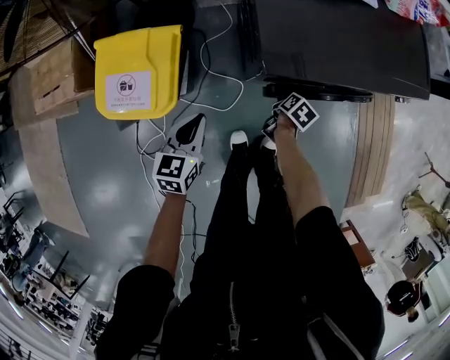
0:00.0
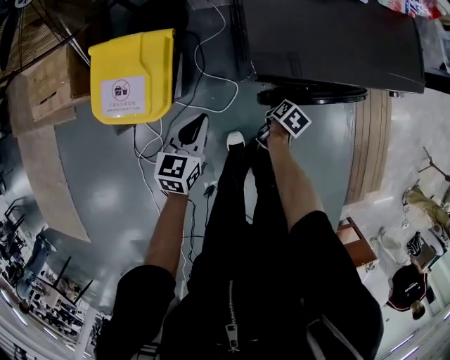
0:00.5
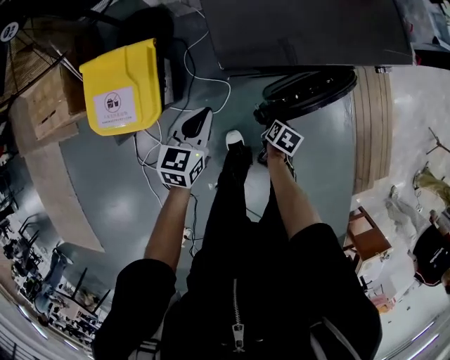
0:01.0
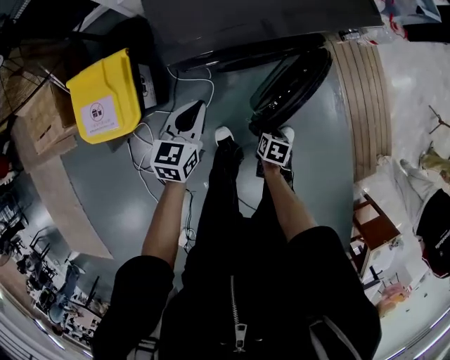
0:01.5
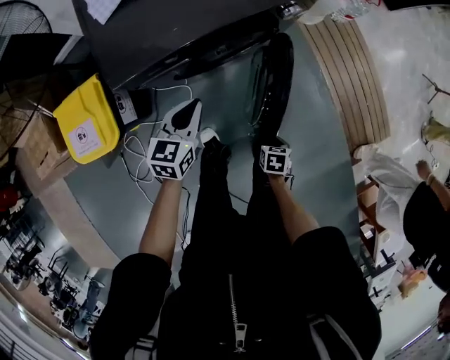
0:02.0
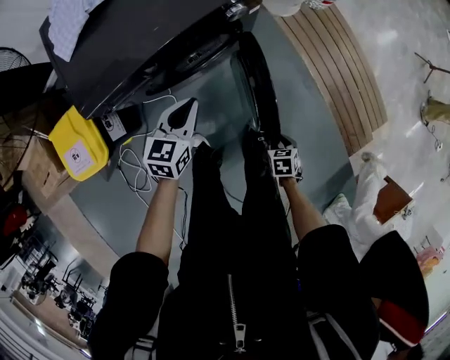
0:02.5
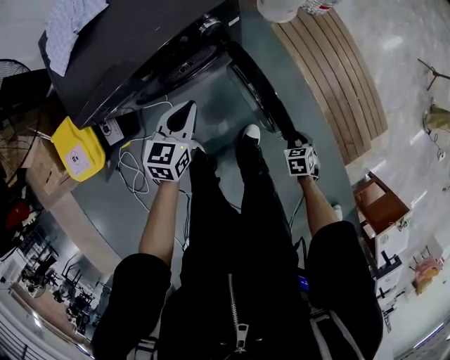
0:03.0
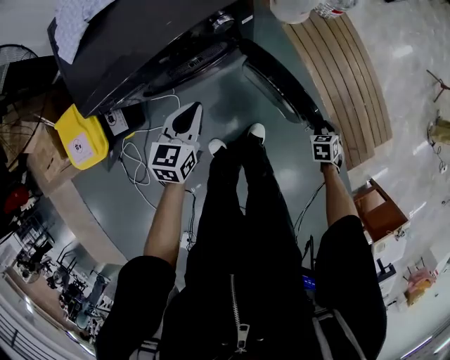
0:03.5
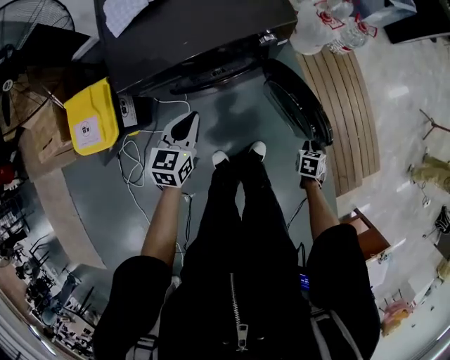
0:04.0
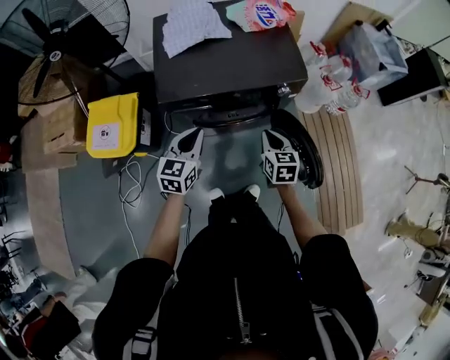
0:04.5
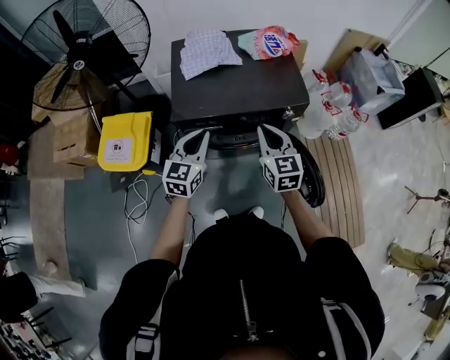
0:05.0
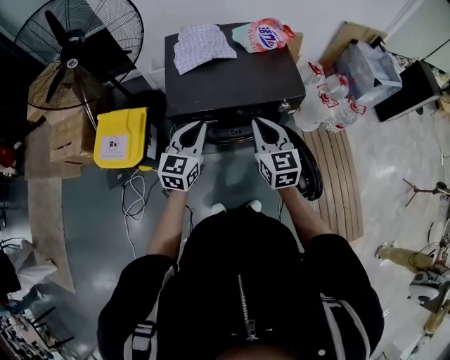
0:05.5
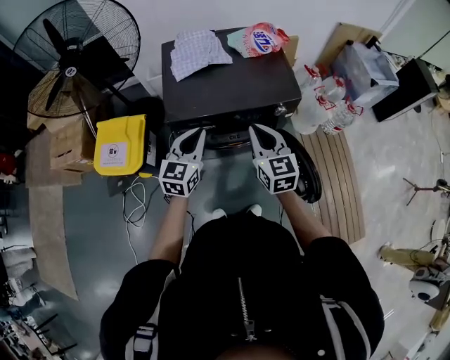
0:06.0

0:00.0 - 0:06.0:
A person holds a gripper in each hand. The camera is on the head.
0:00.0 - 0:02.0: The right gripper heads to the right and backward, covering about 35 cm, rotates roughly 20 degrees, and closes; the left gripper is displaced to the right by roughly 35 cm, and swivels roughly 20 degrees.
0:02.0 - 0:04.0: The right gripper is displaced to the right and forward by approximately 25 cm; the left gripper moves upward and to the right, approximately 10 cm.
0:04.0 - 0:06.0: The right gripper moves upward, roughly 40 cm, and angles its fingers upward, by roughly 50 degrees. Meanwhile the left gripper moves upward, about 20 cm, and changes its angle by about 20 degrees.

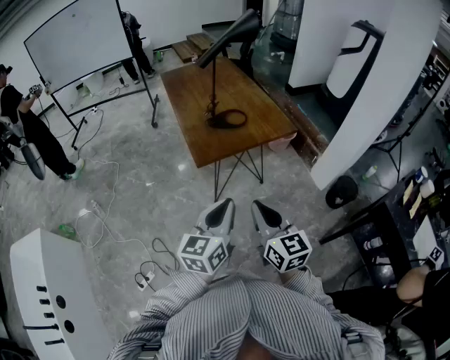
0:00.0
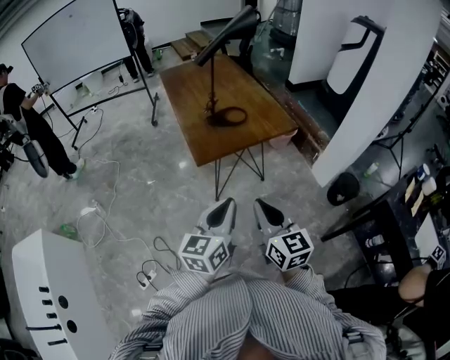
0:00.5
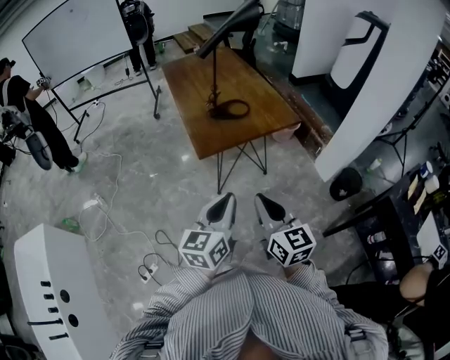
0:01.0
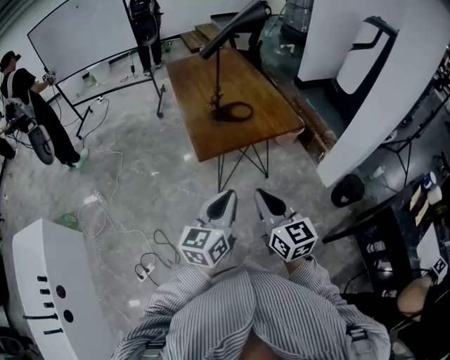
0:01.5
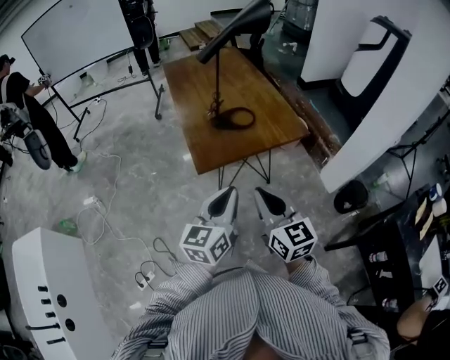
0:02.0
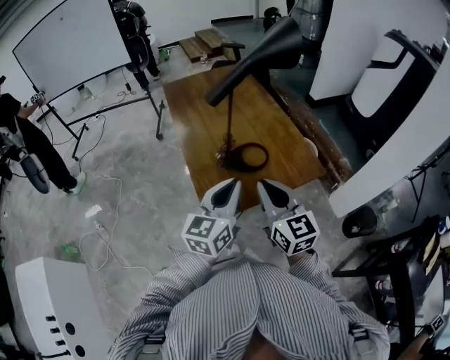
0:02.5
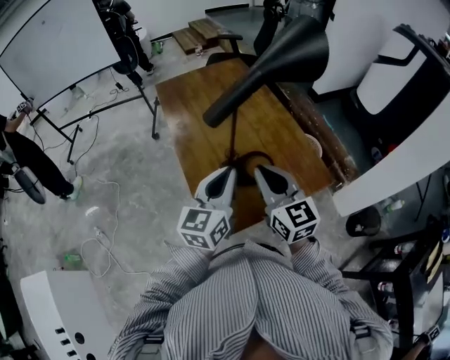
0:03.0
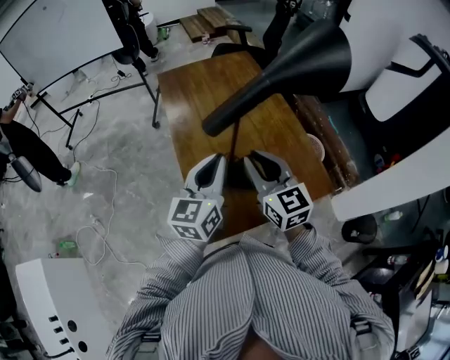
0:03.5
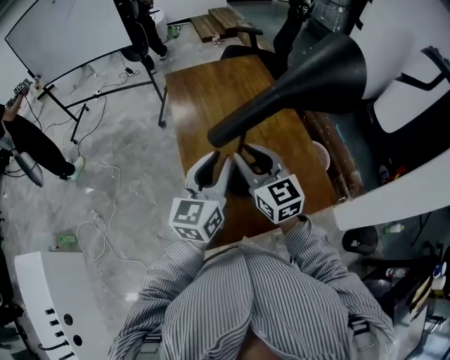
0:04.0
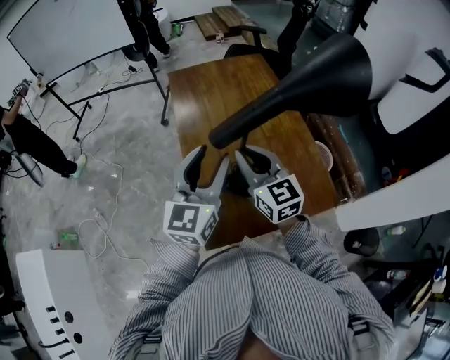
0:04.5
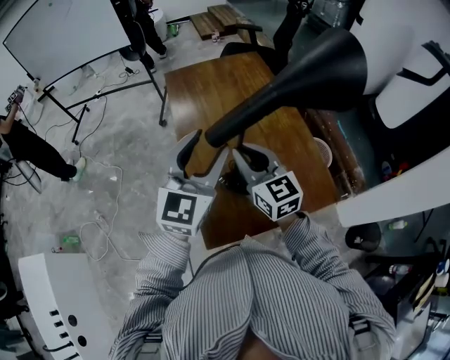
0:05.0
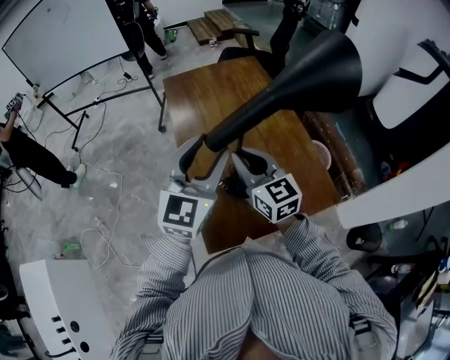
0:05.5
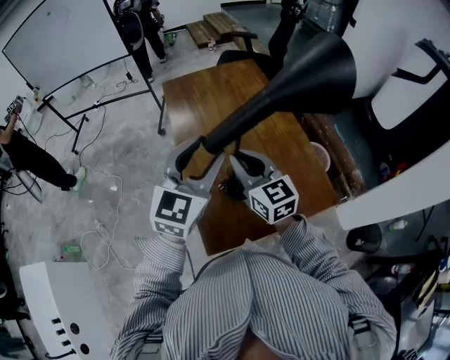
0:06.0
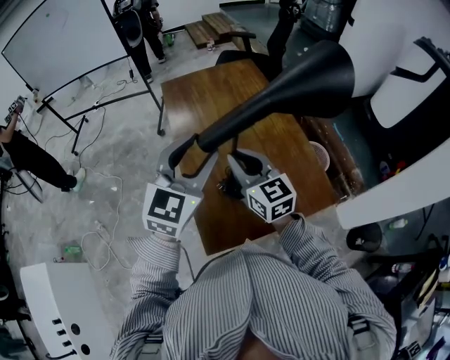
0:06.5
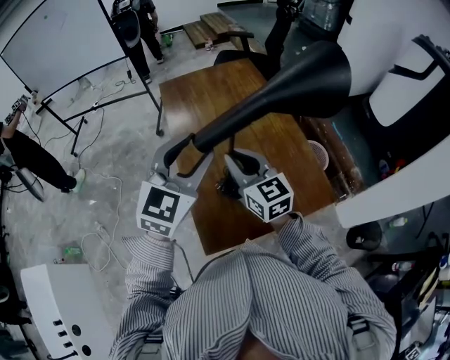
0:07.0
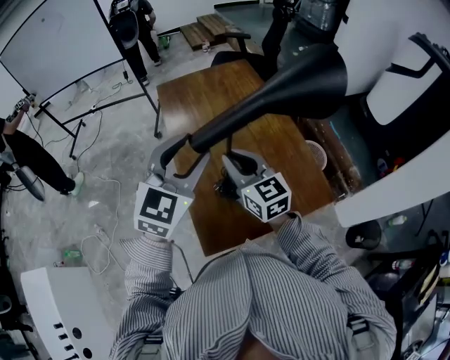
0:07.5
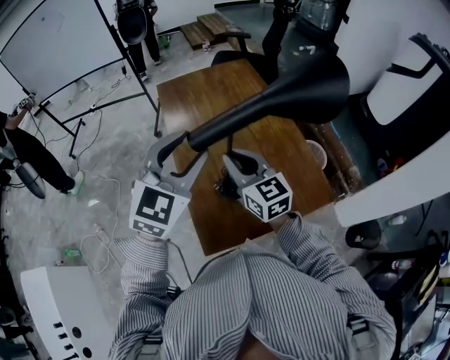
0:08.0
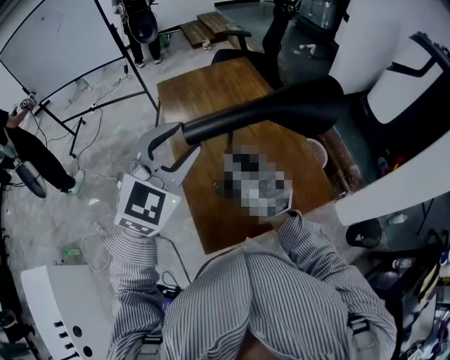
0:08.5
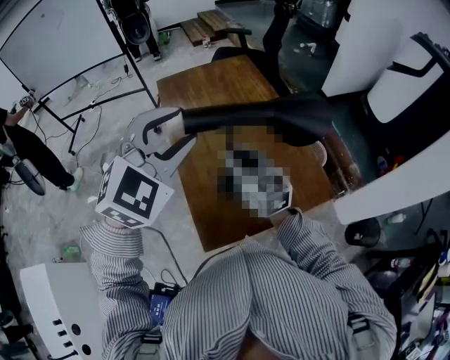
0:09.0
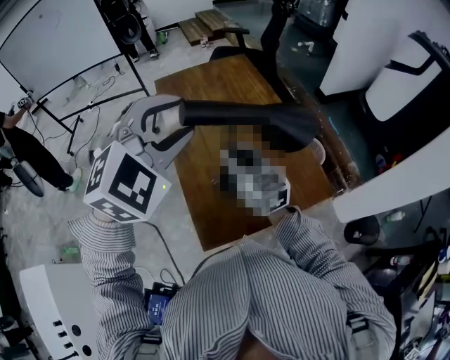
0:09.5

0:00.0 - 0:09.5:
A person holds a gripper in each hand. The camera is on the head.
0:00.0 - 0:02.0: The grippers both shift forward by some 15 cm.
0:02.0 - 0:04.0: The pair of grippers is taken forward, about 50 cm. The right gripper opens its fingers; the left gripper opens up.
0:04.0 - 0:05.5: The left gripper heads upward, covering approximately 5 cm, changes its angle by approximately 30 degrees, and opens.
0:05.5 - 0:07.5: The grippers make only small movements.
0:07.5 - 0:09.5: The left gripper is displaced upward by approximately 10 cm, and turns by some 30 degrees.

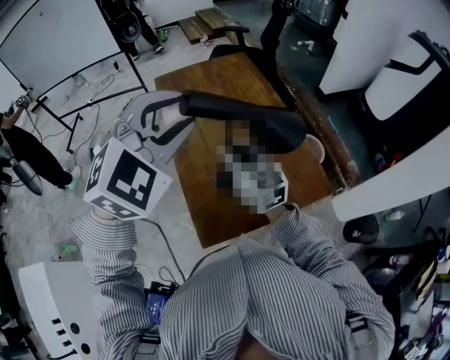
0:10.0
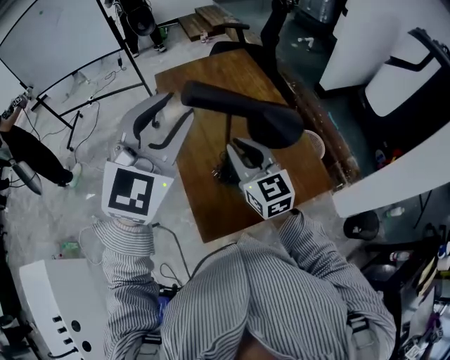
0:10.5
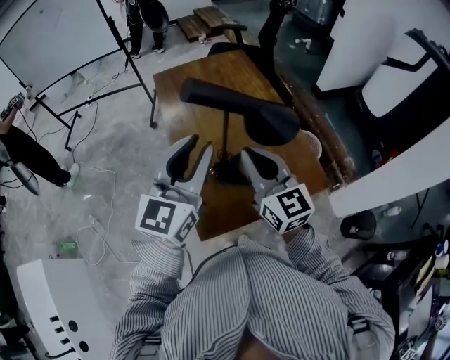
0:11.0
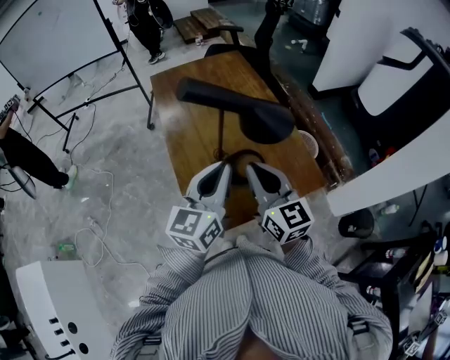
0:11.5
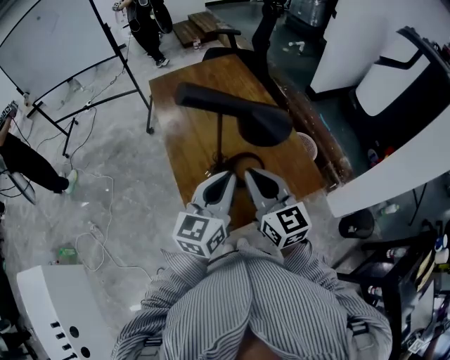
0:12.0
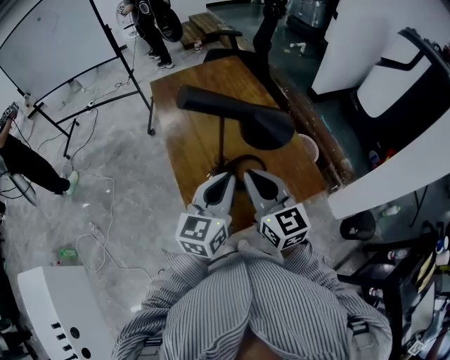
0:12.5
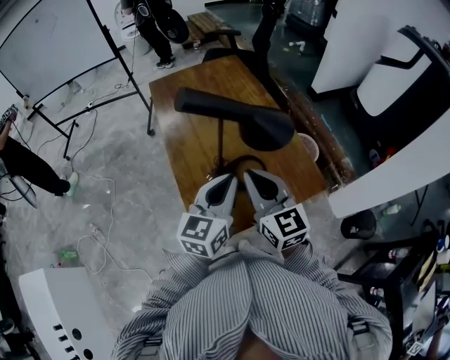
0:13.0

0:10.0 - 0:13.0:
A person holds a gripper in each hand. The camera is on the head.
0:10.0 - 0:11.5: The right gripper shifts roughly 15 cm backward and to the right; the left gripper goes some 15 cm downward and backward, rolls counterclockwise, seen from behind, by some 70 degrees, and closes up.
0:11.5 - 0:13.0: The grippers make only small movements.

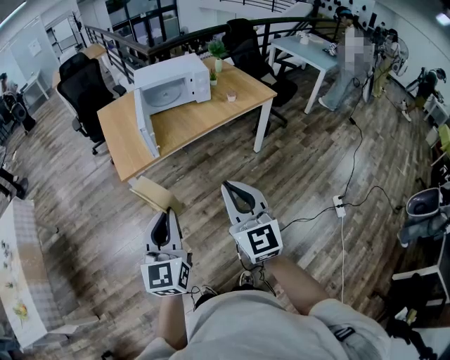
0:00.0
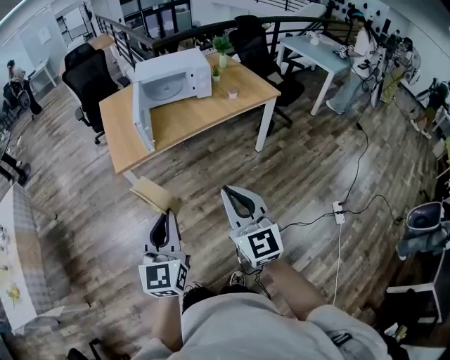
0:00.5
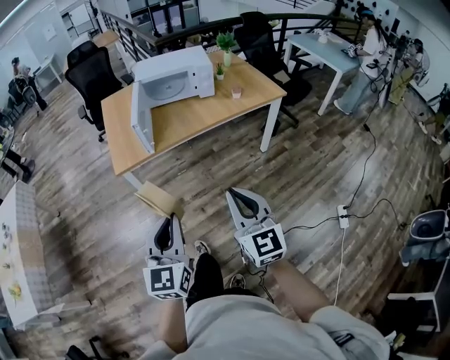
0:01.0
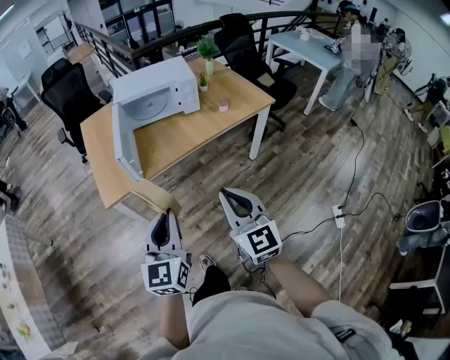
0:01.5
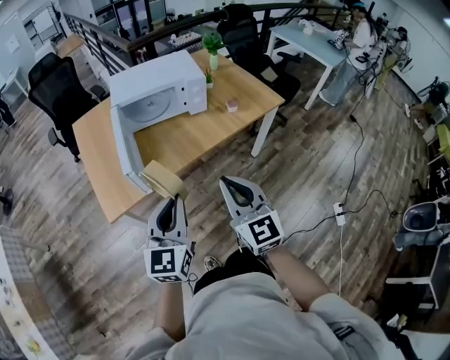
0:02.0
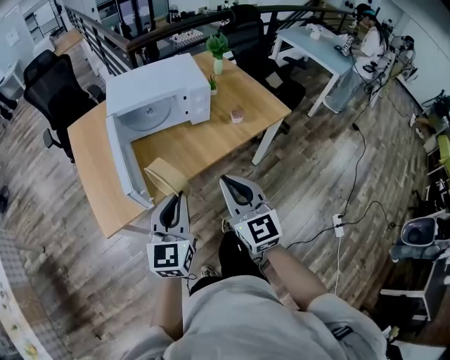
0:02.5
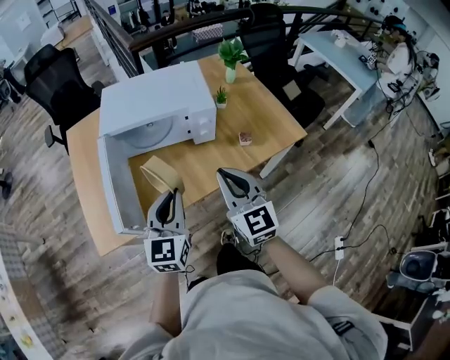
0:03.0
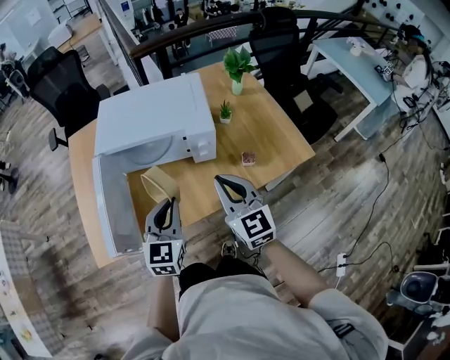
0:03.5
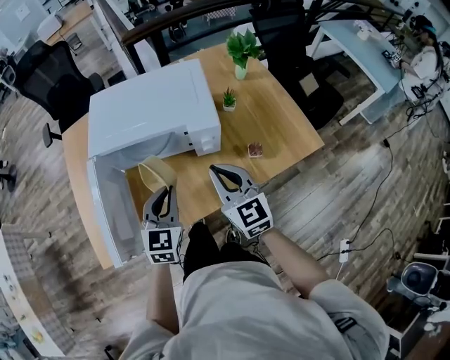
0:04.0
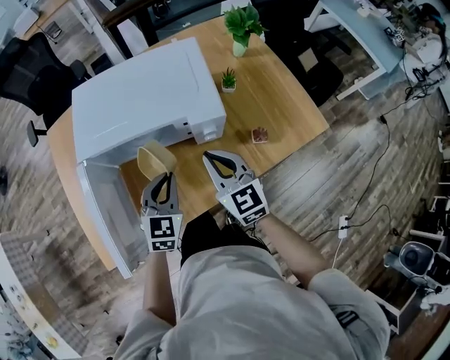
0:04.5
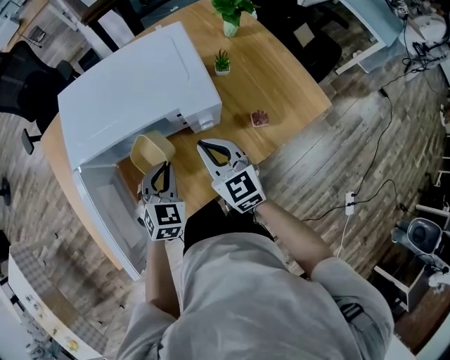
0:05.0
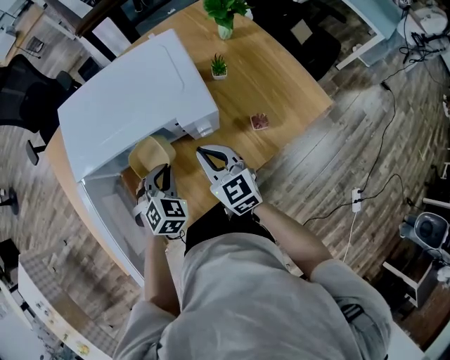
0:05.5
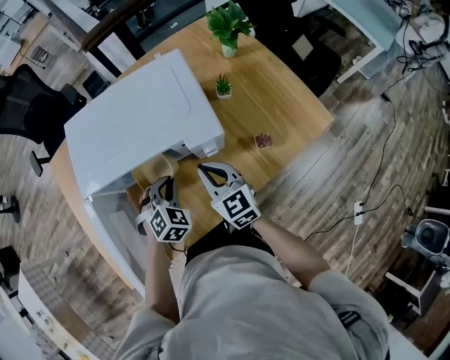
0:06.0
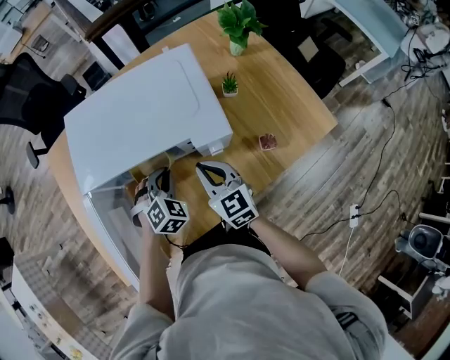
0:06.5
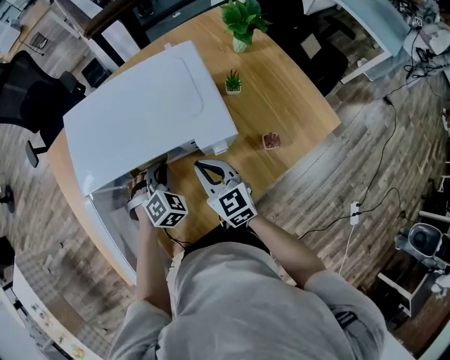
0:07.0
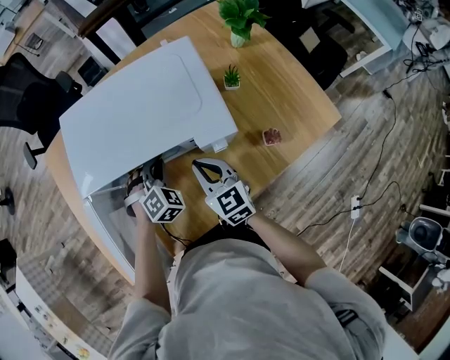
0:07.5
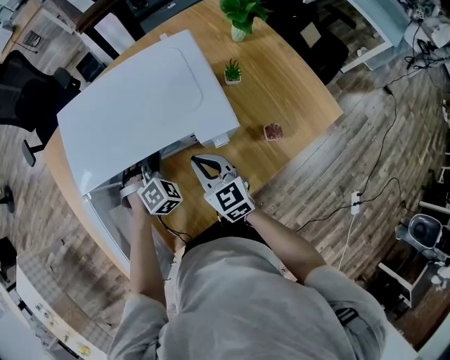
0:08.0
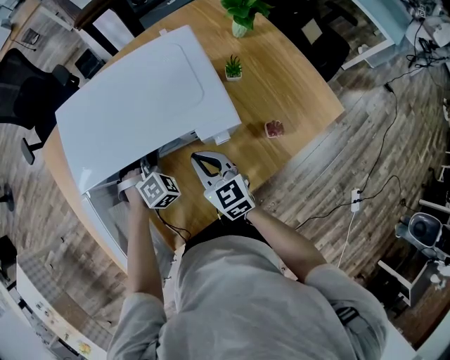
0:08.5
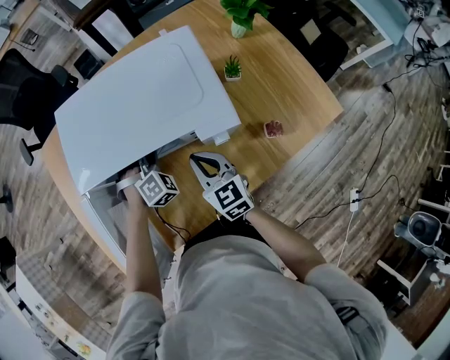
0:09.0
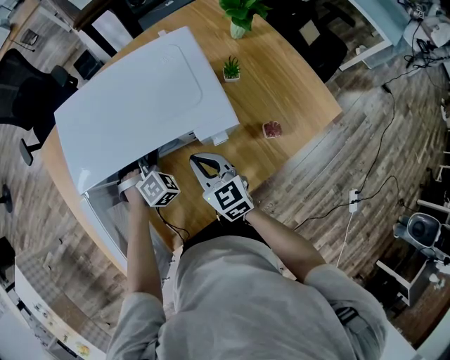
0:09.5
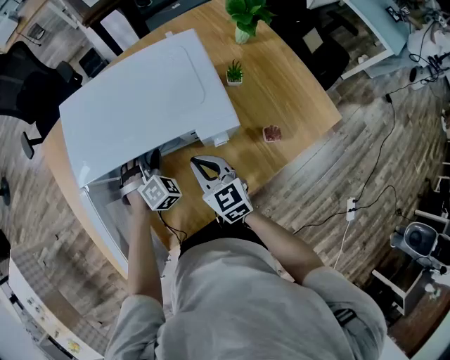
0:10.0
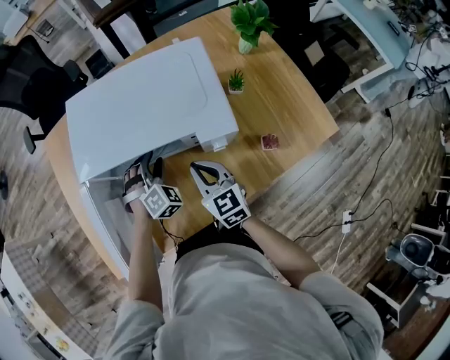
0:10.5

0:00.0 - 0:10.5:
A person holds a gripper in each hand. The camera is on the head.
0:00.0 - 0:02.0: Both grippers move forward, roughly 30 cm.
0:02.0 - 0:04.0: Both grippers travel together forward, approximately 40 cm. The left gripper changes its angle by approximately 20 degrees.
0:04.0 - 0:06.5: The right gripper travels downward, forward and to the left by roughly 15 cm. Meanwhile the left gripper travels forward and downward by some 20 cm, and turns by some 50 degrees.
0:06.5 - 0:08.5: The left gripper moves forward, some 5 cm.
0:08.5 - 0:10.5: The left gripper opens up.
